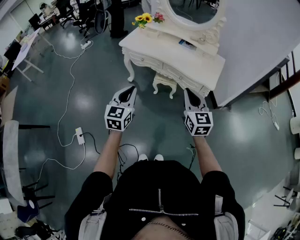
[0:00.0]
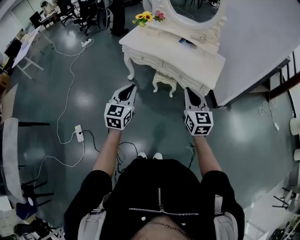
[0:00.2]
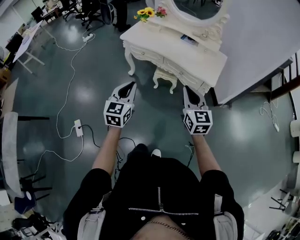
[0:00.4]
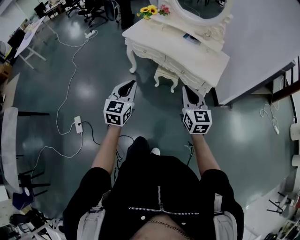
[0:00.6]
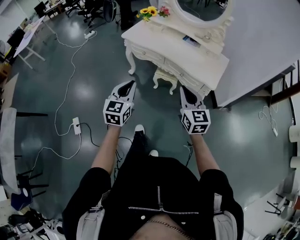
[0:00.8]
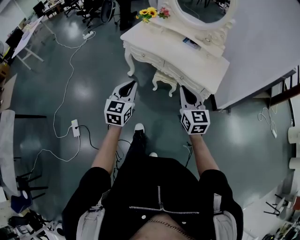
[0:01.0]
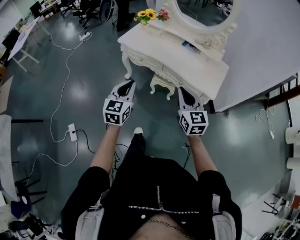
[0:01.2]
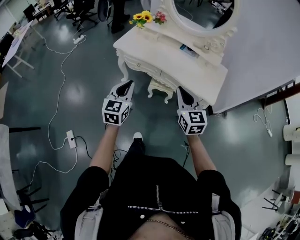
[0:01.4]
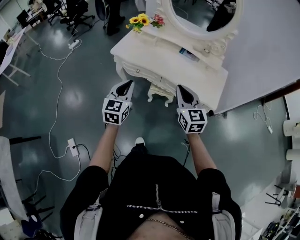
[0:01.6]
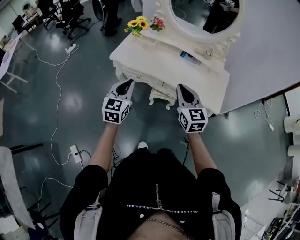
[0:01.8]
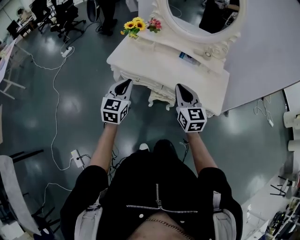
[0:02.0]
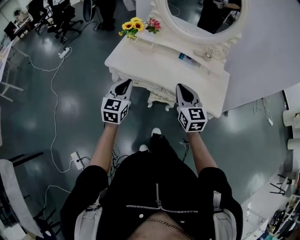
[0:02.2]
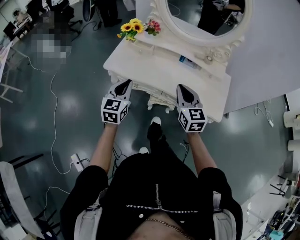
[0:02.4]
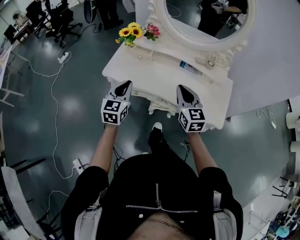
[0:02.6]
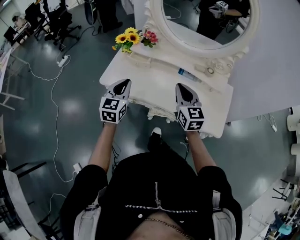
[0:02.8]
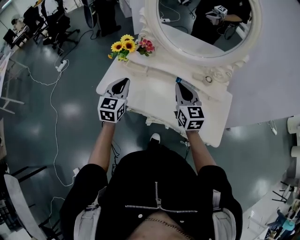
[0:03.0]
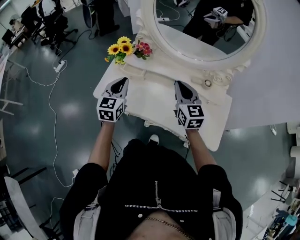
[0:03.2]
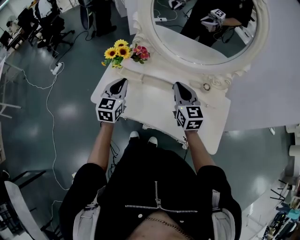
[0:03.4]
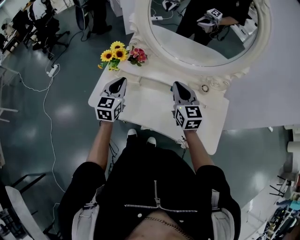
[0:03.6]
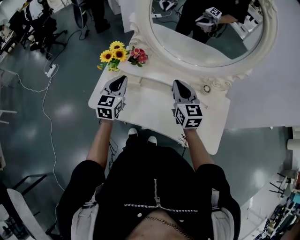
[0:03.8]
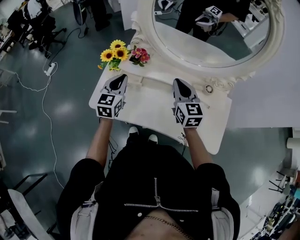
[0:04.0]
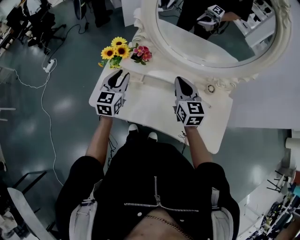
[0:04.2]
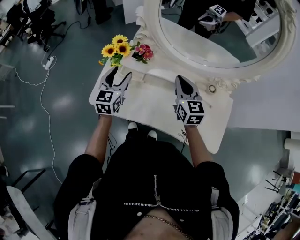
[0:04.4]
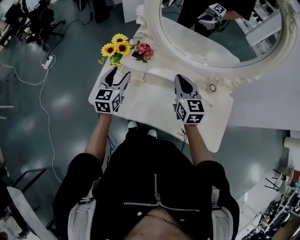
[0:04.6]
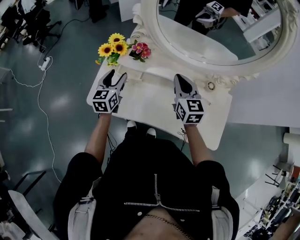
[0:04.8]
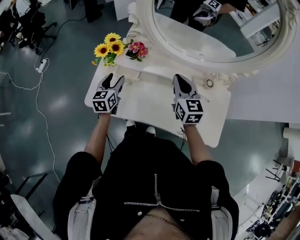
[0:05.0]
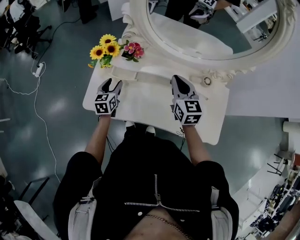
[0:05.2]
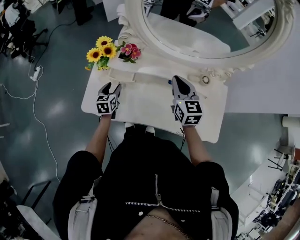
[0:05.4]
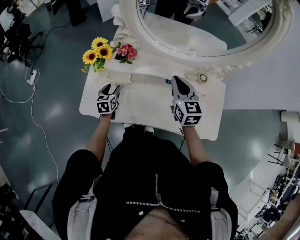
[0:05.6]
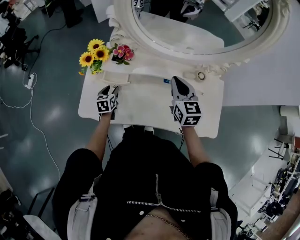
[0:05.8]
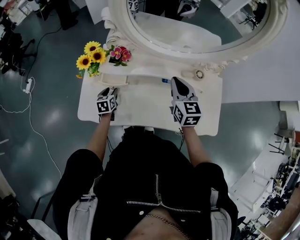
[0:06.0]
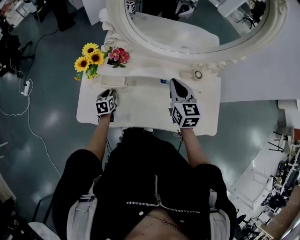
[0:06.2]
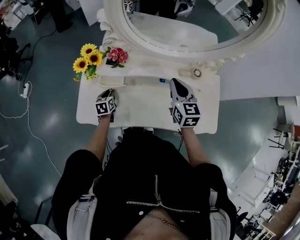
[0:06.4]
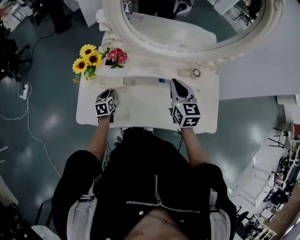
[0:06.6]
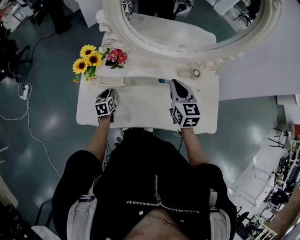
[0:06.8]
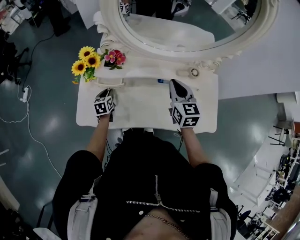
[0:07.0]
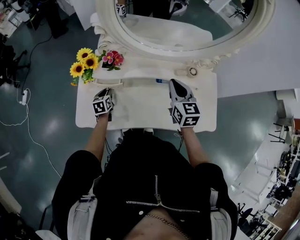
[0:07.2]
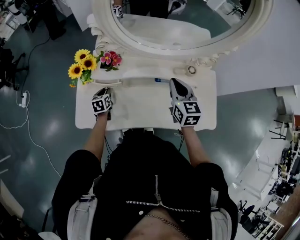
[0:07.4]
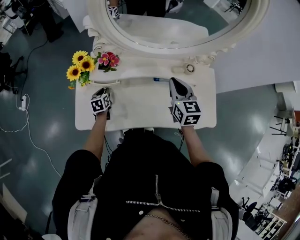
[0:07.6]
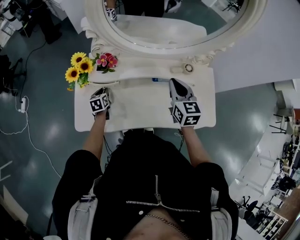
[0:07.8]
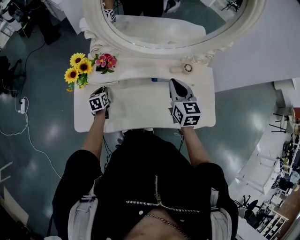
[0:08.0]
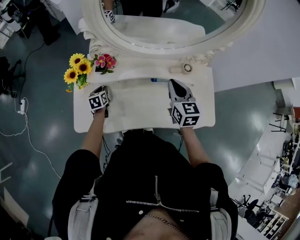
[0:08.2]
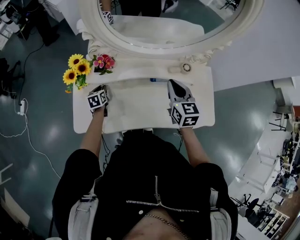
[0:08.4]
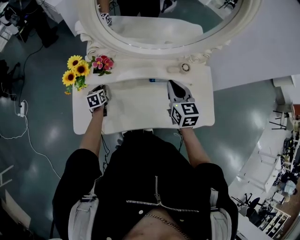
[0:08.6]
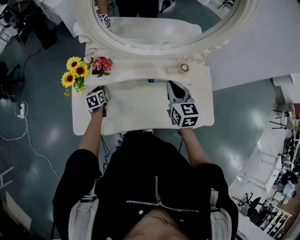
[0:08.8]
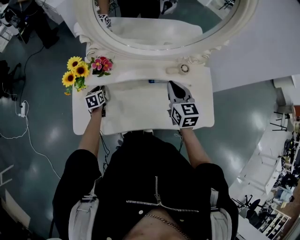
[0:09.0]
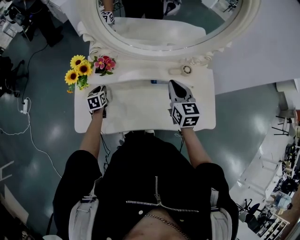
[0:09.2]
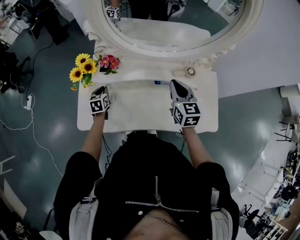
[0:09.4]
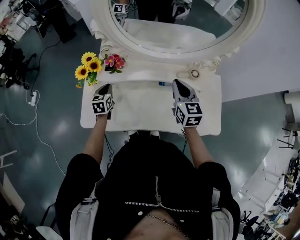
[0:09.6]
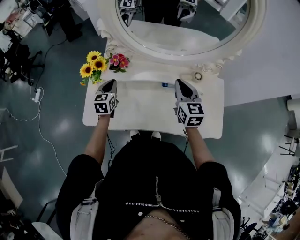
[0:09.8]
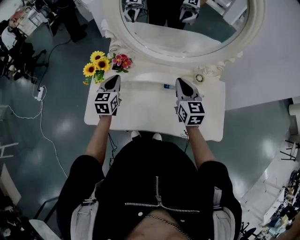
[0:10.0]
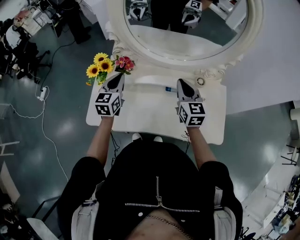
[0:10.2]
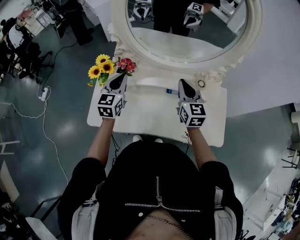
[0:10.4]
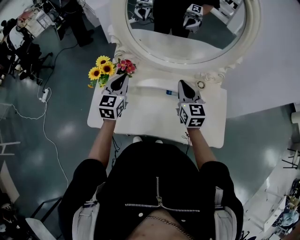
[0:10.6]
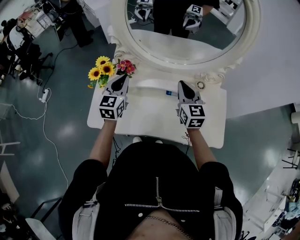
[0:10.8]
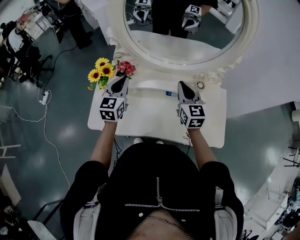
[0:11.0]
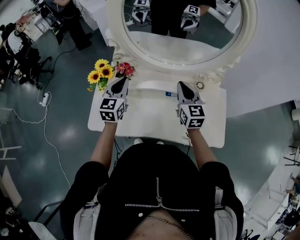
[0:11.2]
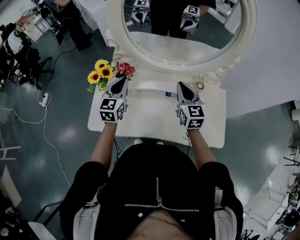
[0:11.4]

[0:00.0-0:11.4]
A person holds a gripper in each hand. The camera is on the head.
0:00.0 to 0:01.4: The grippers both shift forward by about 15 cm.
0:01.4 to 0:02.8: The grippers both shift forward by some 35 cm.
0:02.8 to 0:04.2: The grippers both shift forward by about 20 cm. The left gripper opens its fingers.
0:04.2 to 0:05.6: The left gripper goes some 20 cm downward, changes its angle by approximately 30 degrees, and opens up.
0:05.6 to 0:07.2: The left gripper ends up approximately 5 cm from where it was, and closes up.
0:07.2 to 0:08.6: The left gripper moves forward, roughly 5 cm.
0:08.6 to 0:10.0: The left gripper shifts approximately 20 cm upward, and turns by approximately 30 degrees.
0:10.0 to 0:11.4: The left gripper is displaced upward by approximately 5 cm.

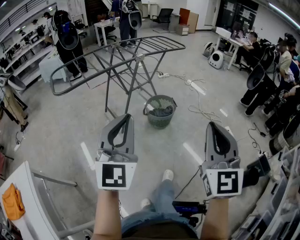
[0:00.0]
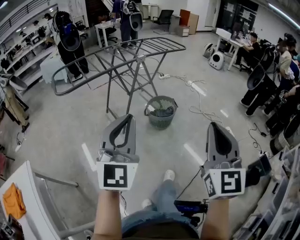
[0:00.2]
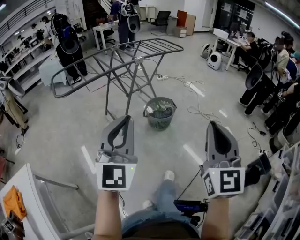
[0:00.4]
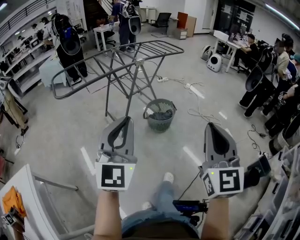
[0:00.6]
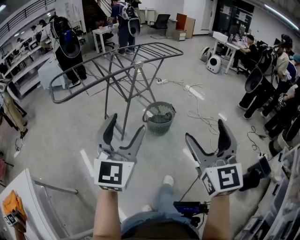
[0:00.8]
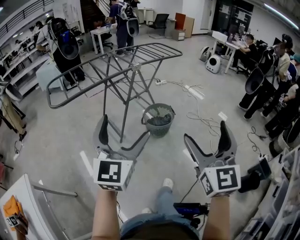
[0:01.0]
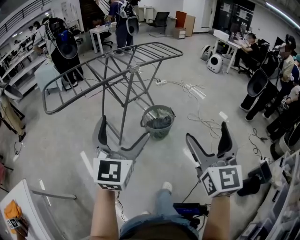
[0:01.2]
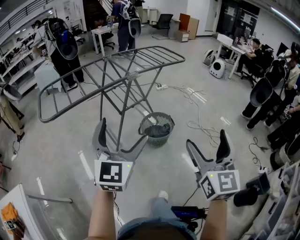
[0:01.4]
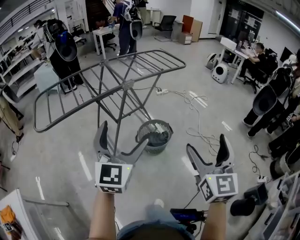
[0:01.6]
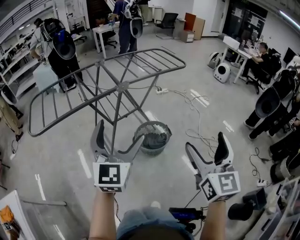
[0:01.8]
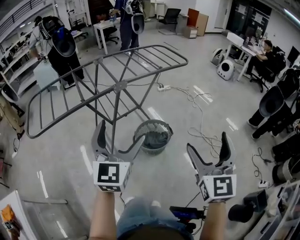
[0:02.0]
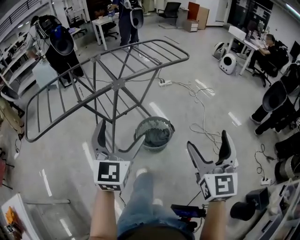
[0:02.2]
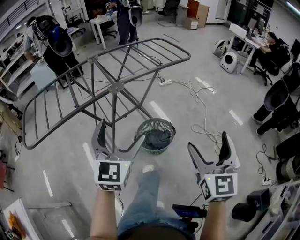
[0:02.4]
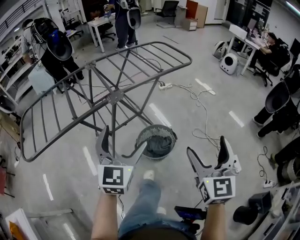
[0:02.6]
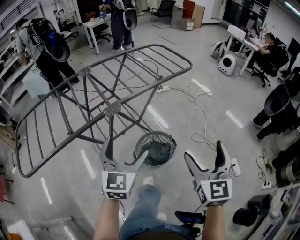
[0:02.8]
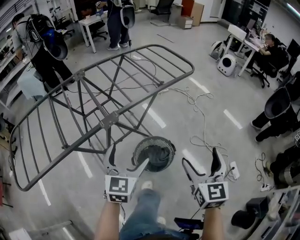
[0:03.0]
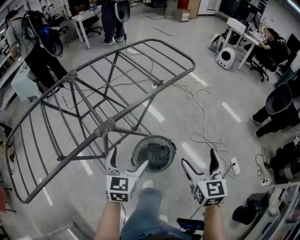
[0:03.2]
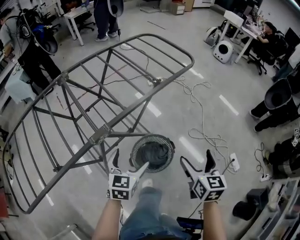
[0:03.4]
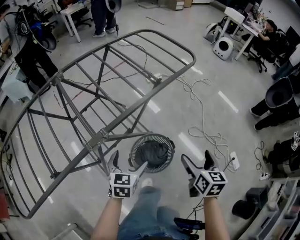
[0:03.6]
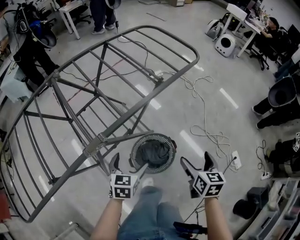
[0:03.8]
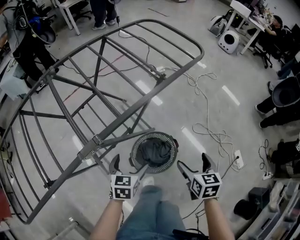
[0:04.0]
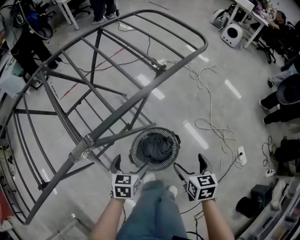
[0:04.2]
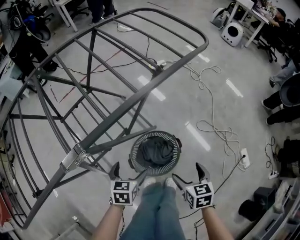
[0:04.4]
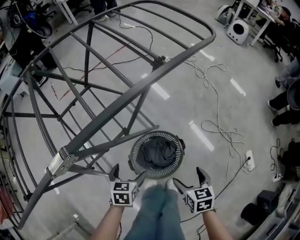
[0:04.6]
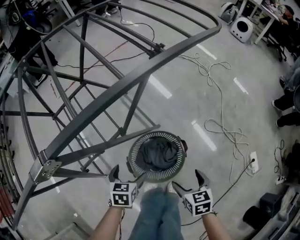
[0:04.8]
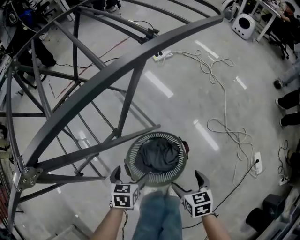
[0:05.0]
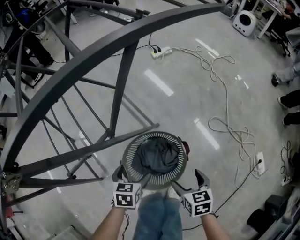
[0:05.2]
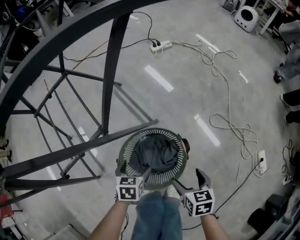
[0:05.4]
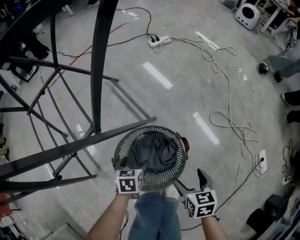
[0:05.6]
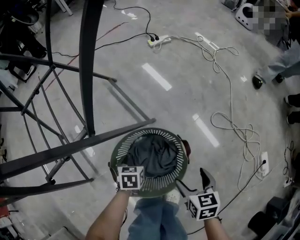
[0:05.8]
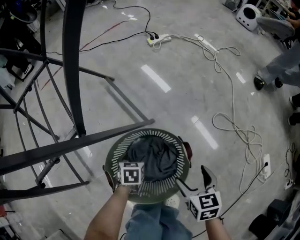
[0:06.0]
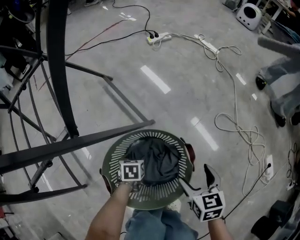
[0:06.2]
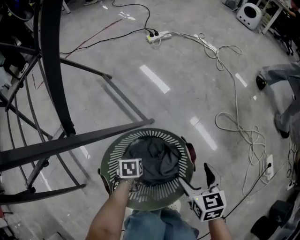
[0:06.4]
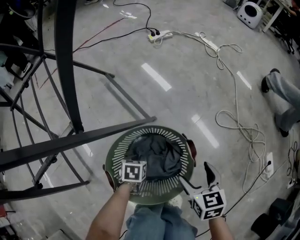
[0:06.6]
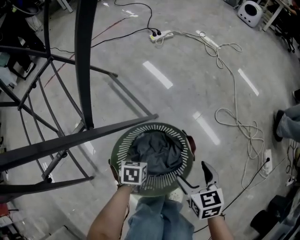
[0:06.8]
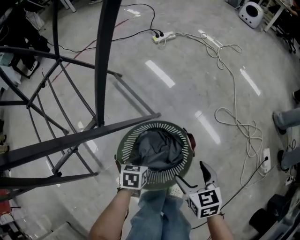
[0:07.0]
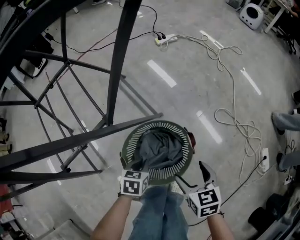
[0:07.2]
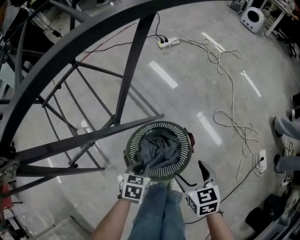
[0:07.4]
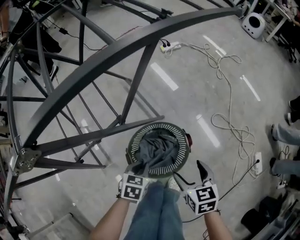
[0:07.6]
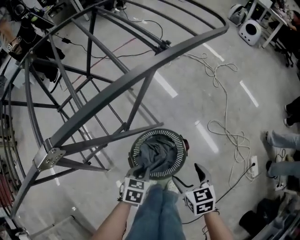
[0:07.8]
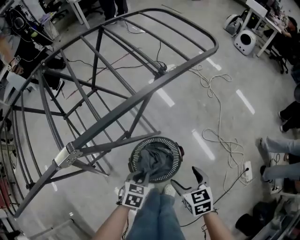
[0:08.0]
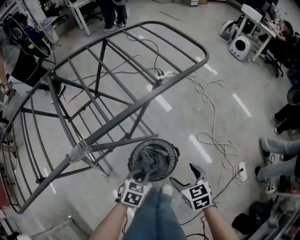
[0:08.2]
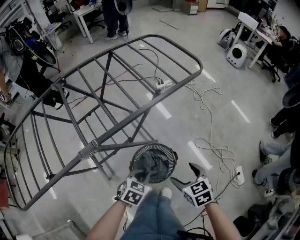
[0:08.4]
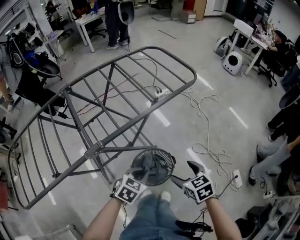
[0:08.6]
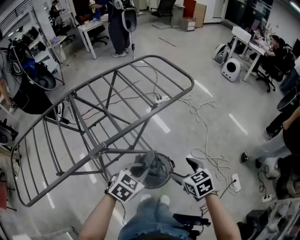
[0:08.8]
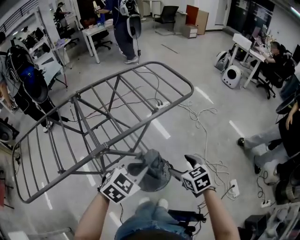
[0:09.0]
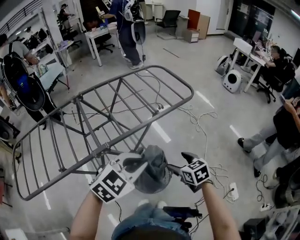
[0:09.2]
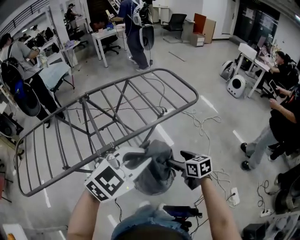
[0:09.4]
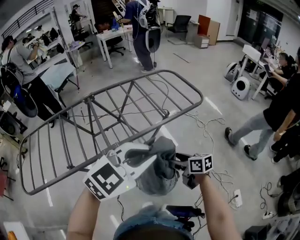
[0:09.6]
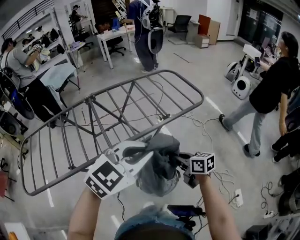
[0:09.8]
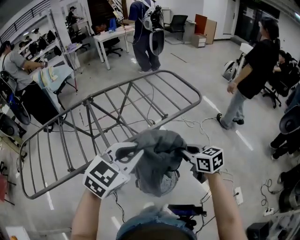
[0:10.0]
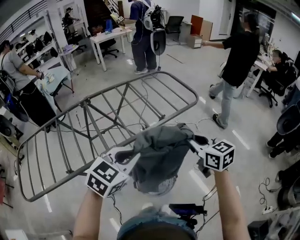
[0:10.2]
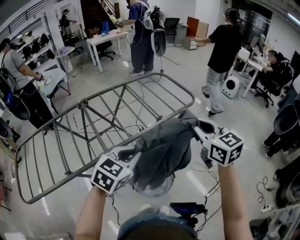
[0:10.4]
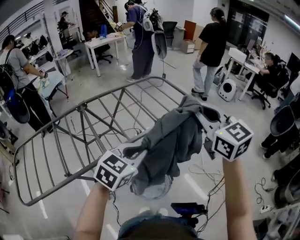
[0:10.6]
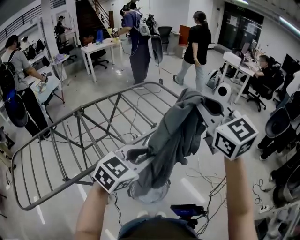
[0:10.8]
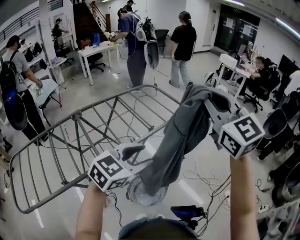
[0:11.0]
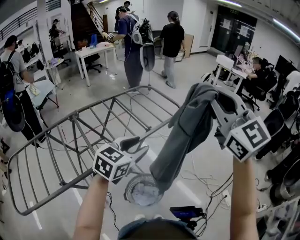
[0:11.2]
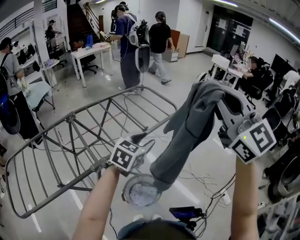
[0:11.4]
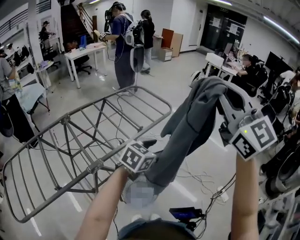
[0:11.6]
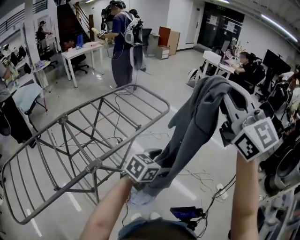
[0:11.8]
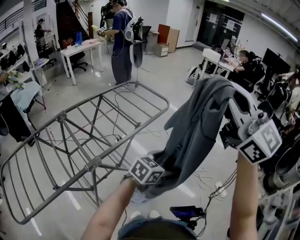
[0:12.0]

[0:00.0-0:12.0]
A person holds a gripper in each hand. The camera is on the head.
0:00.0 to 0:01.6: The grippers both shift forward by about 30 cm. The left gripper opens its fingers, while the right gripper opens its fingers.
0:01.6 to 0:03.0: The left gripper shifts about 35 cm forward and downward, and swivels some 20 degrees, while the right gripper goes some 35 cm forward.
0:03.0 to 0:04.4: The grippers both shift downward by roughly 30 cm. The right gripper points its fingers about 30 degrees further downward, while the left gripper tilts its fingers approximately 30 degrees downward.
0:04.4 to 0:06.0: Both grippers move downward, approximately 35 cm. The left gripper closes its fingers.
0:06.0 to 0:07.6: The two grippers go about 20 cm upward. The left gripper closes up.
0:07.6 to 0:09.0: The two grippers go approximately 40 cm upward. The left gripper rotates roughly 40 degrees.
0:09.0 to 0:10.4: The left gripper travels upward and to the left by approximately 10 cm. The right gripper is displaced upward by some 25 cm, angles its fingers upward, by roughly 30 degrees, and closes its fingers.
0:10.4 to 0:12.0: The left gripper is displaced to the right by approximately 20 cm, turns by about 40 degrees, and opens its fingers. The right gripper shifts approximately 25 cm upward, and rotates roughly 40 degrees.
